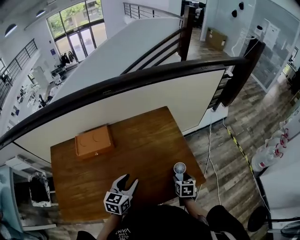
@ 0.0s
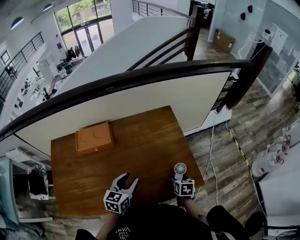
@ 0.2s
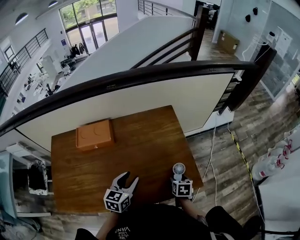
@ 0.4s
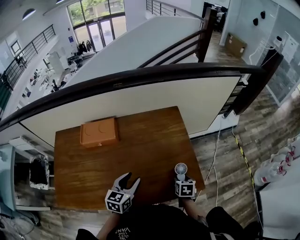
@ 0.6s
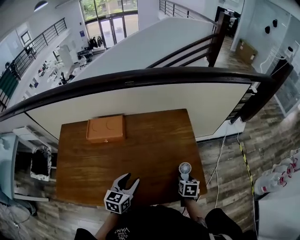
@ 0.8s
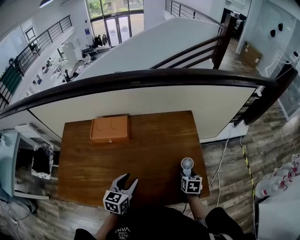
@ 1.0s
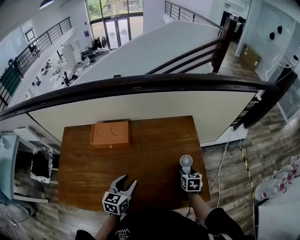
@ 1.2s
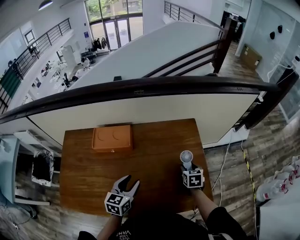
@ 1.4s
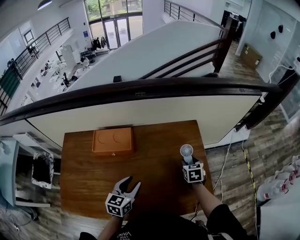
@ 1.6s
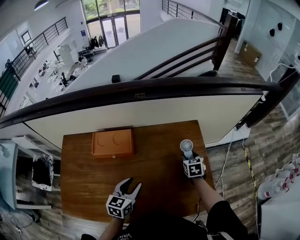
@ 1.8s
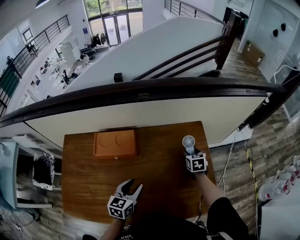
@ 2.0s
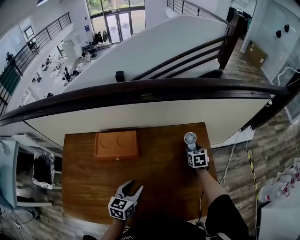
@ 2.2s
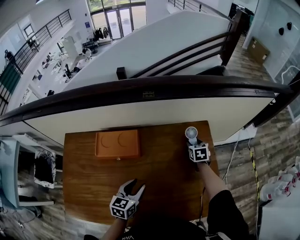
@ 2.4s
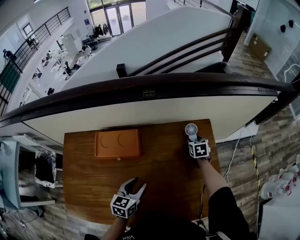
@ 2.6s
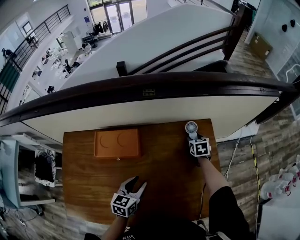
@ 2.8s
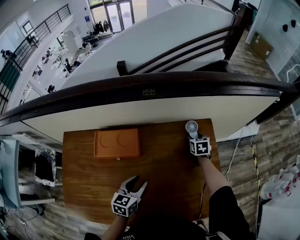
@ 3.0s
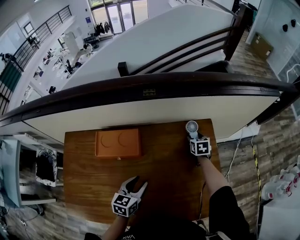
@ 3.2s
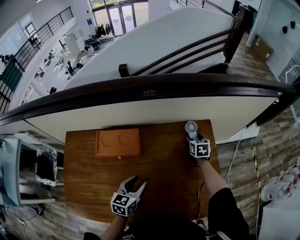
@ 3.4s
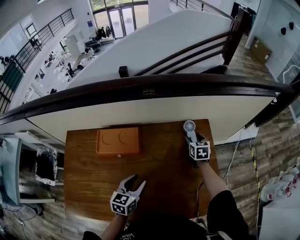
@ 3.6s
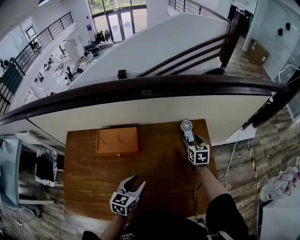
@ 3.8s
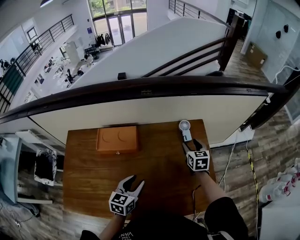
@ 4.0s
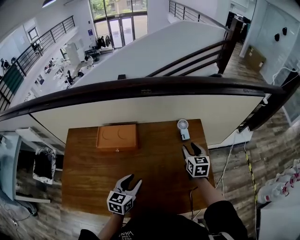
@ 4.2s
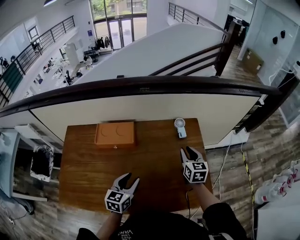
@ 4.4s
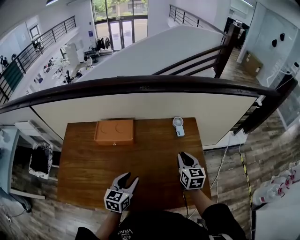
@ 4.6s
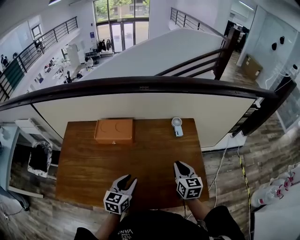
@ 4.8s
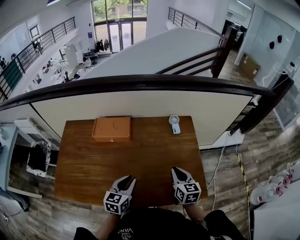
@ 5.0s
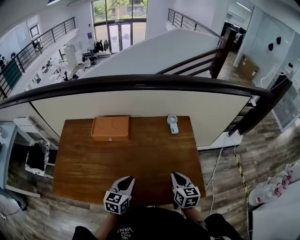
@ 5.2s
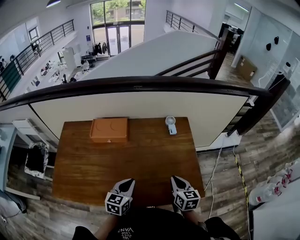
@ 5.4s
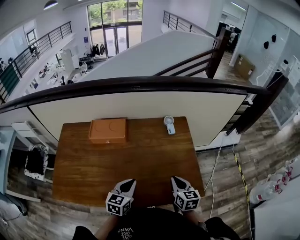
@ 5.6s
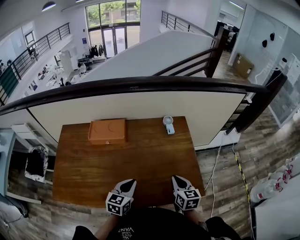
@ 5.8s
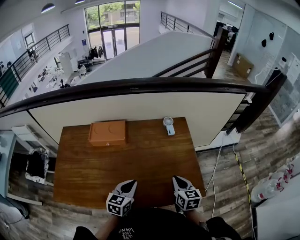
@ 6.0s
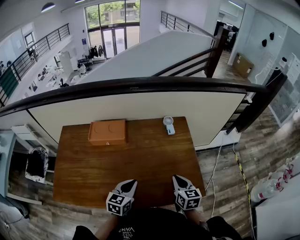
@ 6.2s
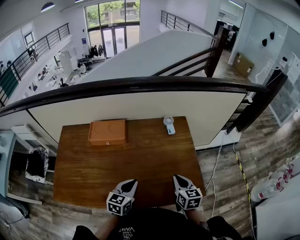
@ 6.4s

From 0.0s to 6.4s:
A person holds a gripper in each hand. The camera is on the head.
From 0.0s to 1.6s: The left gripper moves to the left, approximately 5 cm. Meanwhile the right gripper shifts roughly 20 cm forward and to the left, and changes its angle by about 20 degrees.
From 1.6s to 3.2s: The right gripper goes about 15 cm forward, while the left gripper changes place by approximately 5 cm.
From 3.2s to 4.8s: The left gripper travels backward and upward by roughly 10 cm. The right gripper heads backward and upward, covering approximately 30 cm, turns by approximately 30 degrees, and closes.
From 4.8s to 6.4s: The left gripper ends up about 5 cm from where it was, and closes; the right gripper travels backward by approximately 10 cm.

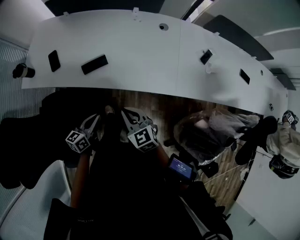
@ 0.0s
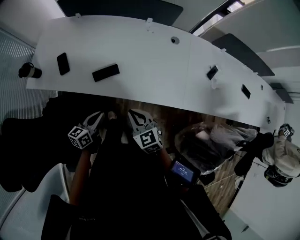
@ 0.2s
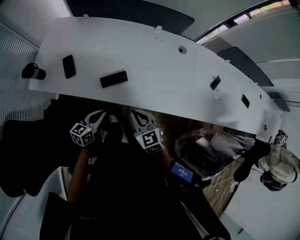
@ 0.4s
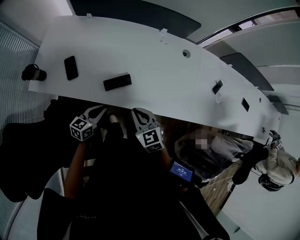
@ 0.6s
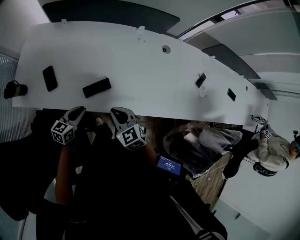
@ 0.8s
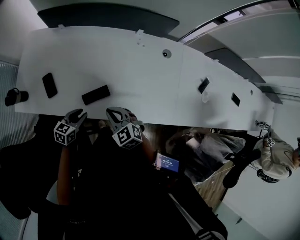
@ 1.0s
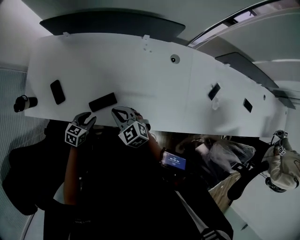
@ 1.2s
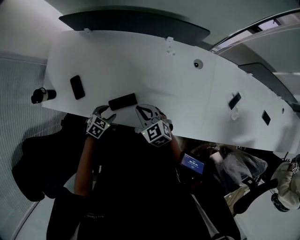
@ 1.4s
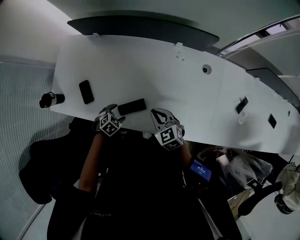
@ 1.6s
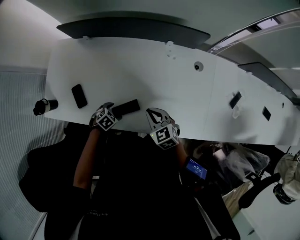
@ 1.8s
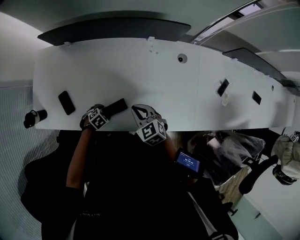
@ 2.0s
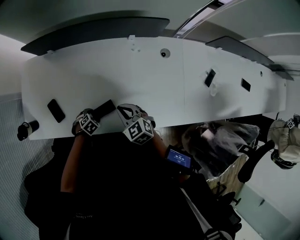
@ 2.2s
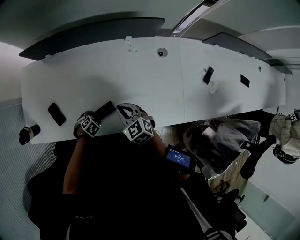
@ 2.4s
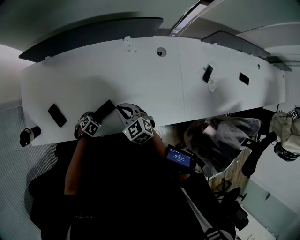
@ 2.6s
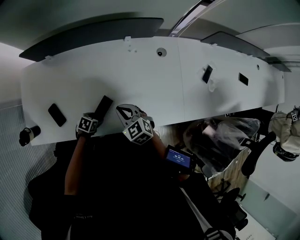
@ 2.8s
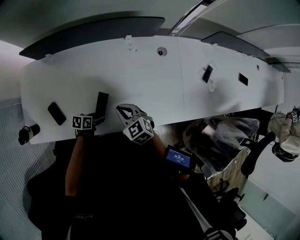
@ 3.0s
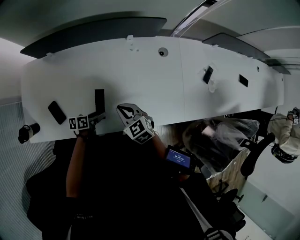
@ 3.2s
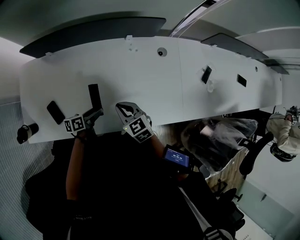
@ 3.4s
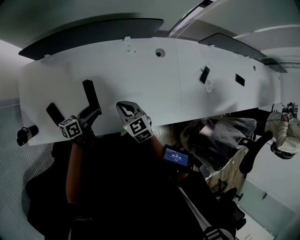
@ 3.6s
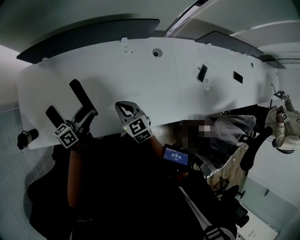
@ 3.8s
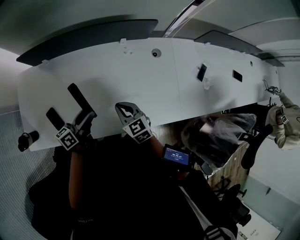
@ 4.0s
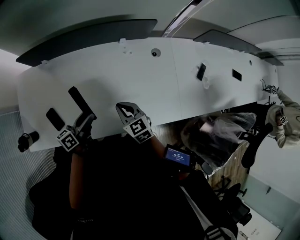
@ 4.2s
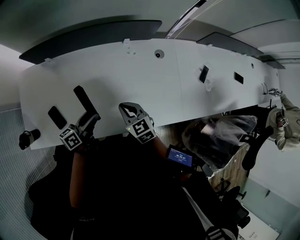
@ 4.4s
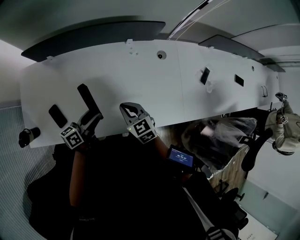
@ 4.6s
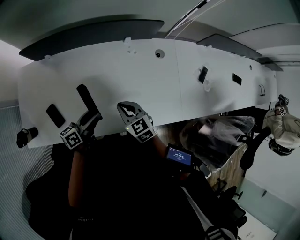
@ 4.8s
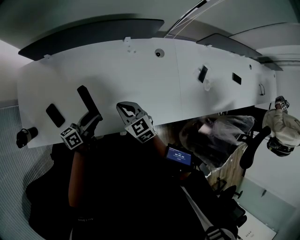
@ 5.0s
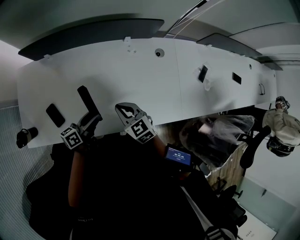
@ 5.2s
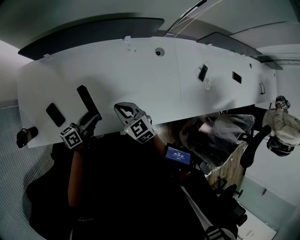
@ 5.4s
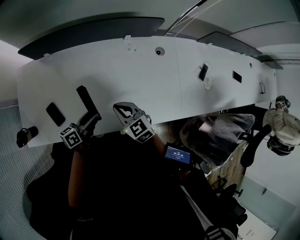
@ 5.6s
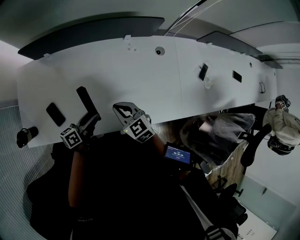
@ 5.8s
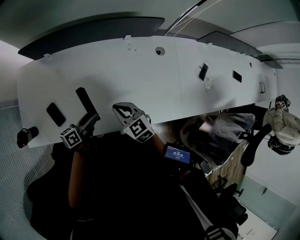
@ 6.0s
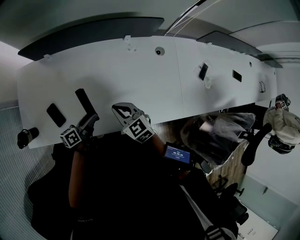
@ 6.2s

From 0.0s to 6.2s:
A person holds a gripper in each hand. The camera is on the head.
From 0.0s to 1.6s: The left gripper travels forward, downward and to the left by some 30 cm, points its fingers approximately 60 degrees further downward, and opens; the right gripper heads forward, covering roughly 25 cm.
From 1.6s to 3.2s: The left gripper travels downward and back again, about 5 cm each way, and points its fingers some 40 degrees further upward.
From 3.2s to 4.6s: The left gripper goes about 15 cm upward, and rotates some 30 degrees.
From 4.6s to 6.2s: The left gripper travels downward by approximately 5 cm.

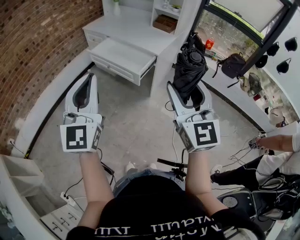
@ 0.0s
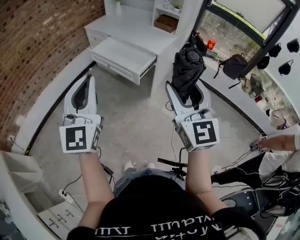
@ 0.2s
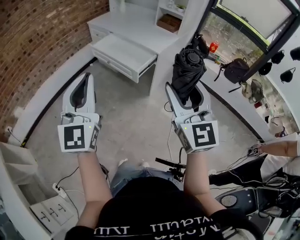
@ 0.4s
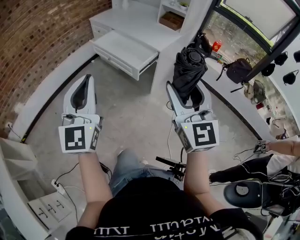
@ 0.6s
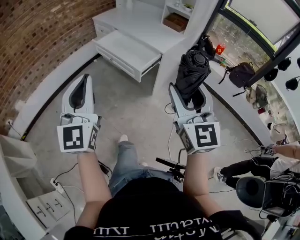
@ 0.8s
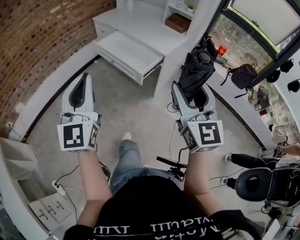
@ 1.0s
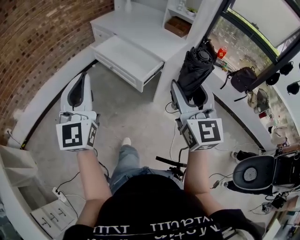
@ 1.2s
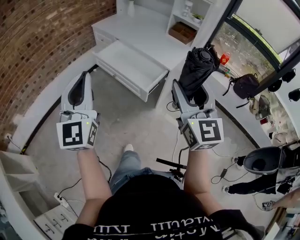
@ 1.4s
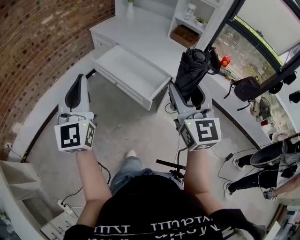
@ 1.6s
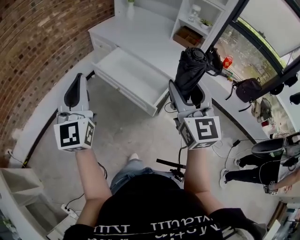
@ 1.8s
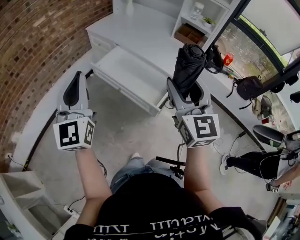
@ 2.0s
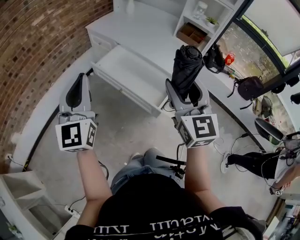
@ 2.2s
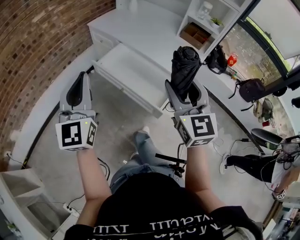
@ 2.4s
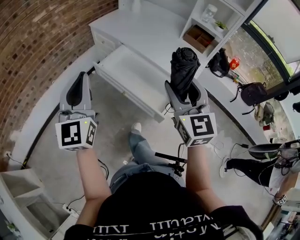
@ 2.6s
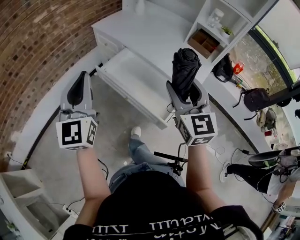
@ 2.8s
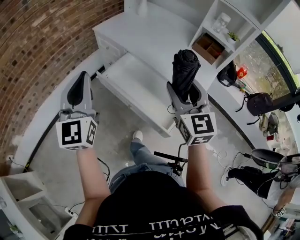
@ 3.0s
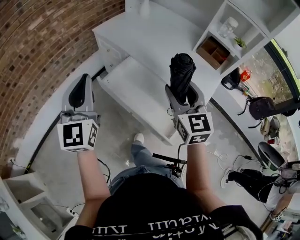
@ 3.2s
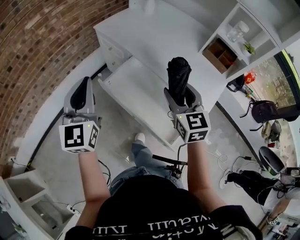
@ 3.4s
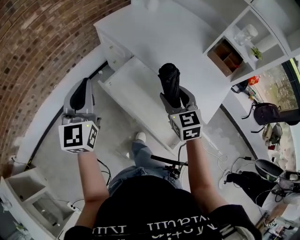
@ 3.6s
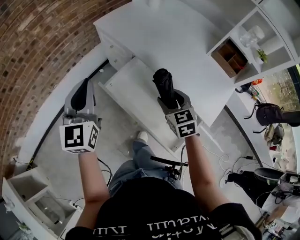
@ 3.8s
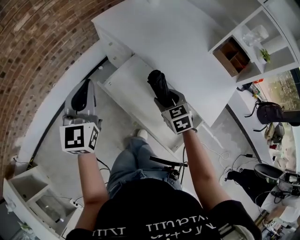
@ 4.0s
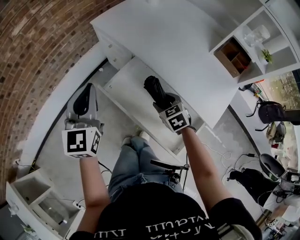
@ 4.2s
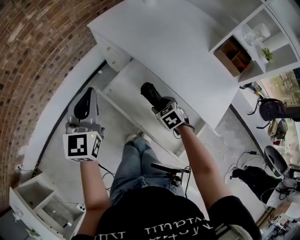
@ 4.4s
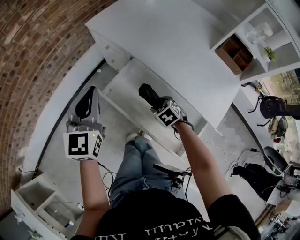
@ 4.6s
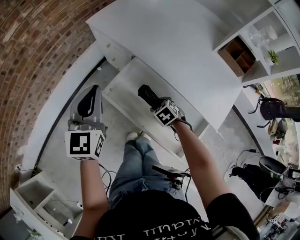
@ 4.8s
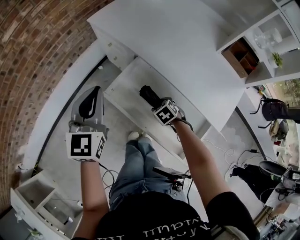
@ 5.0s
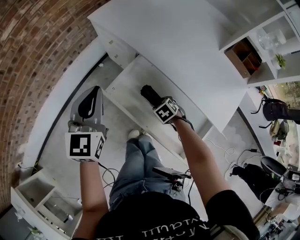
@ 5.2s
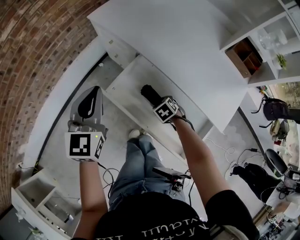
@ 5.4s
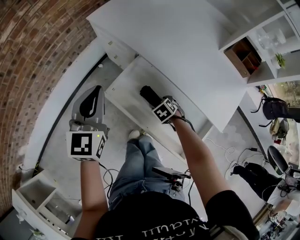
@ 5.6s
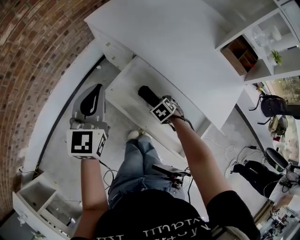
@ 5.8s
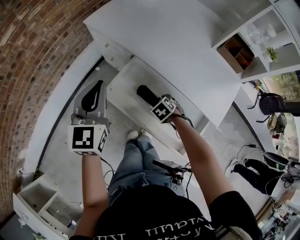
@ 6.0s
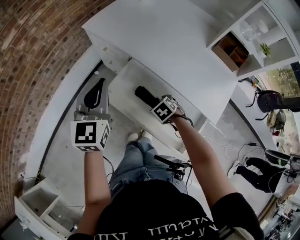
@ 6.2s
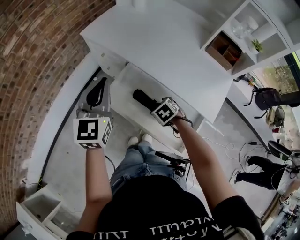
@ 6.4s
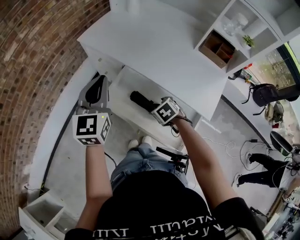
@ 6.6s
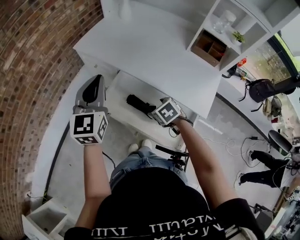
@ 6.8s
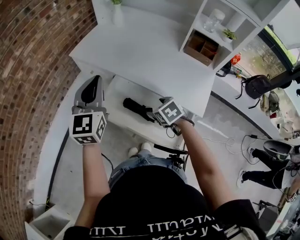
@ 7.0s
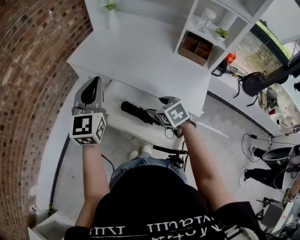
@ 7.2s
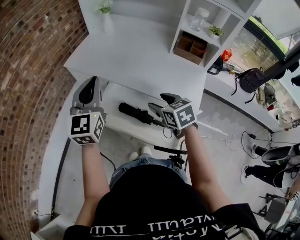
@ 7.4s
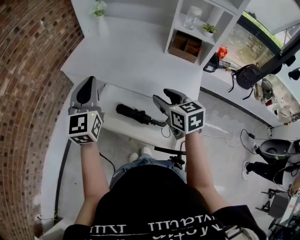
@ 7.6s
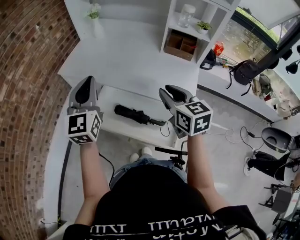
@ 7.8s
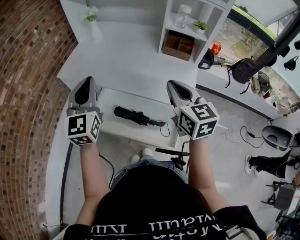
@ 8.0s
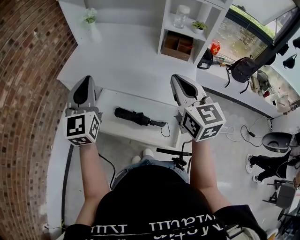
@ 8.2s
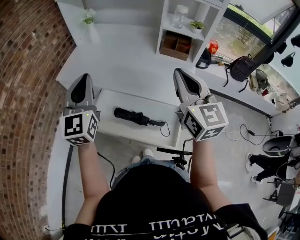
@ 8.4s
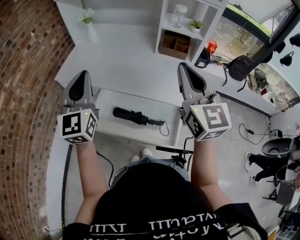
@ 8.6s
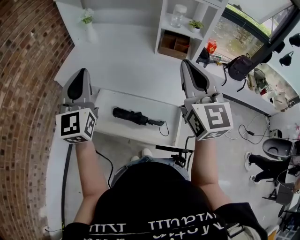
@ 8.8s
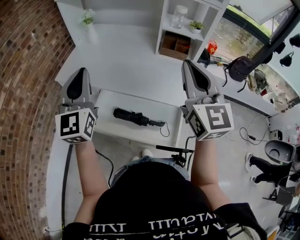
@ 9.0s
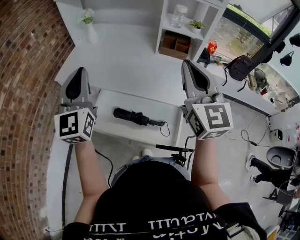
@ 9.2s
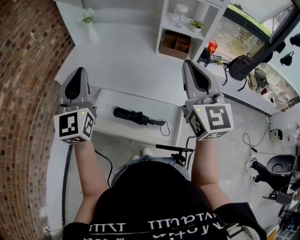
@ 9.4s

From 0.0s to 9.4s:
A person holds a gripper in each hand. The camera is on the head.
From 0.0s to 1.6s: The grippers both shift forward by about 25 cm.
From 1.6s to 3.2s: The grippers both shift forward by roughly 35 cm.
From 3.2s to 4.8s: The right gripper is displaced downward by roughly 35 cm, and tips its fingers downward by roughly 60 degrees. Meanwhile the left gripper is displaced forward and downward by about 20 cm.
From 4.8s to 6.2s: The grippers move only a little.
From 6.2s to 7.8s: The right gripper moves upward, roughly 35 cm, tilts its fingers some 50 degrees upward, and closes up, while the left gripper heads upward and to the right, covering about 15 cm.
From 7.8s to 9.4s: The right gripper shifts about 15 cm upward, and turns by roughly 40 degrees. Meanwhile the left gripper moves upward, some 5 cm.

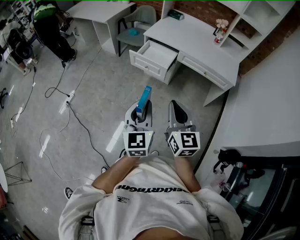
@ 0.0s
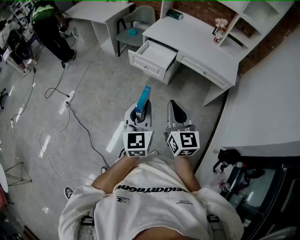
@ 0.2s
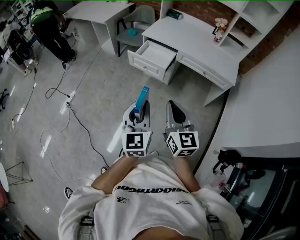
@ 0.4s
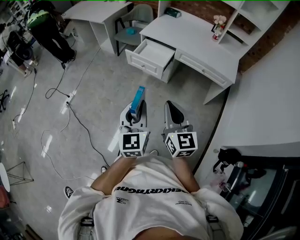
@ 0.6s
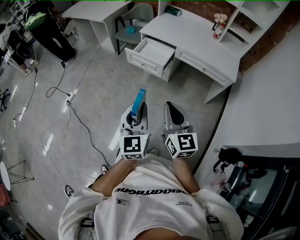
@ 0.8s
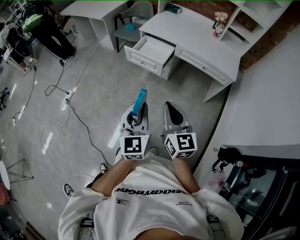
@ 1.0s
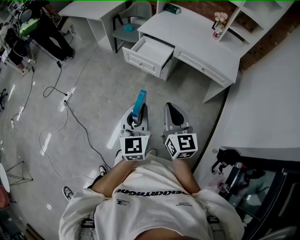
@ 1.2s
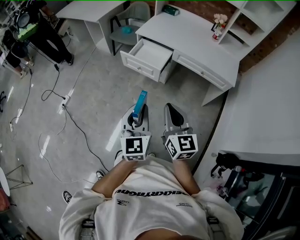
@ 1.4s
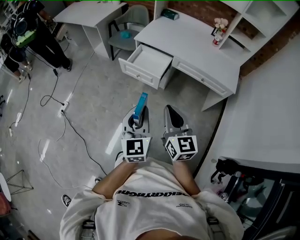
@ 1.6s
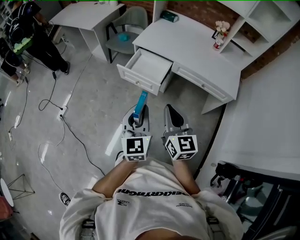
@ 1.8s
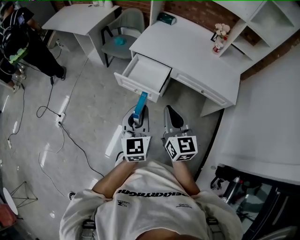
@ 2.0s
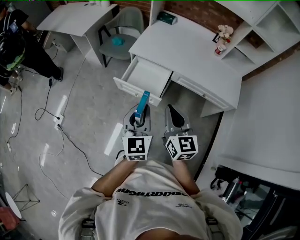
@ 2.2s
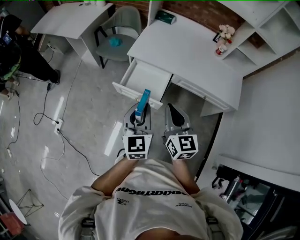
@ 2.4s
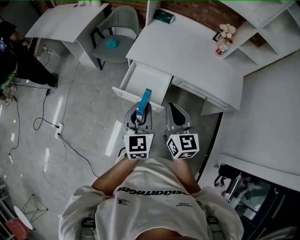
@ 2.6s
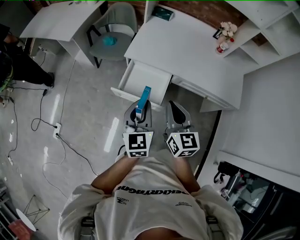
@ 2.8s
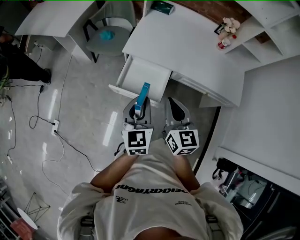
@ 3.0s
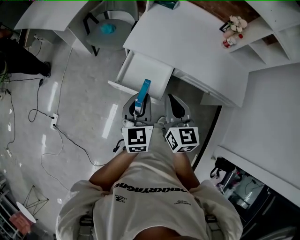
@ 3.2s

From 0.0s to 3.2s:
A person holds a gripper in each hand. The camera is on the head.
From 0.0s to 1.6s: The two grippers go approximately 15 cm forward and to the right.
From 1.6s to 3.2s: Both grippers are carried forward, approximately 40 cm.
